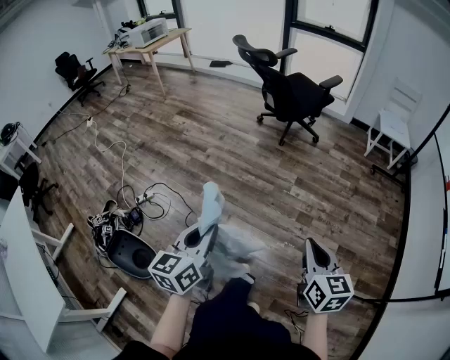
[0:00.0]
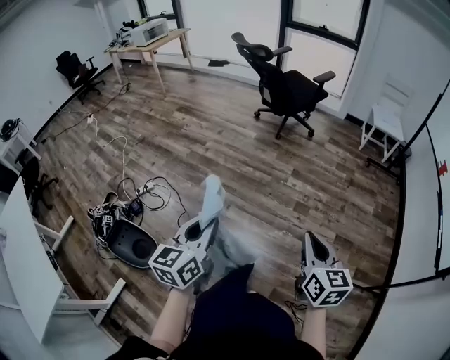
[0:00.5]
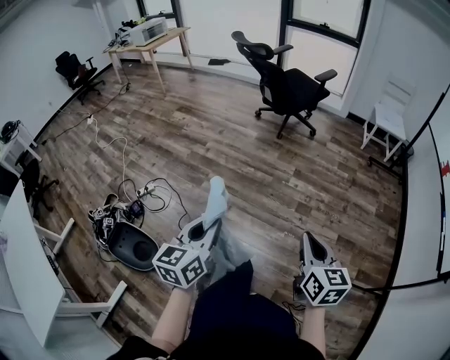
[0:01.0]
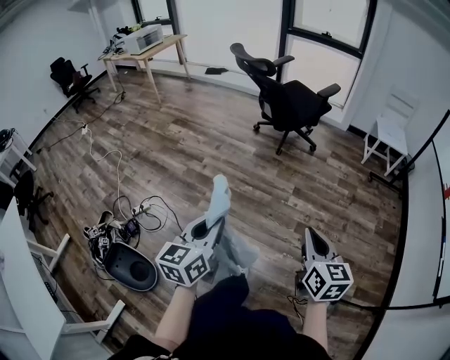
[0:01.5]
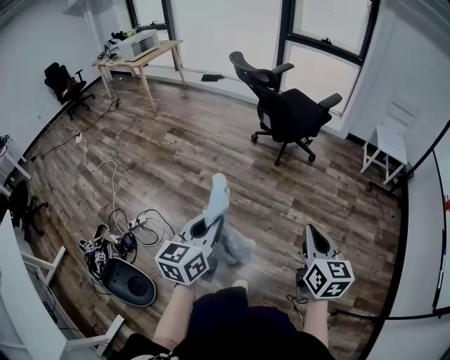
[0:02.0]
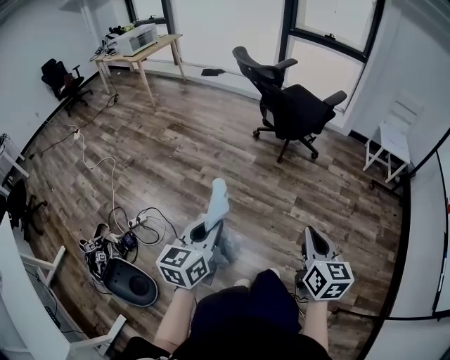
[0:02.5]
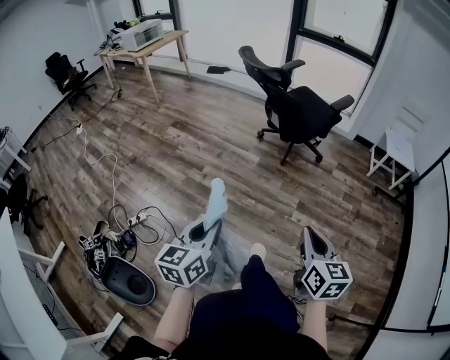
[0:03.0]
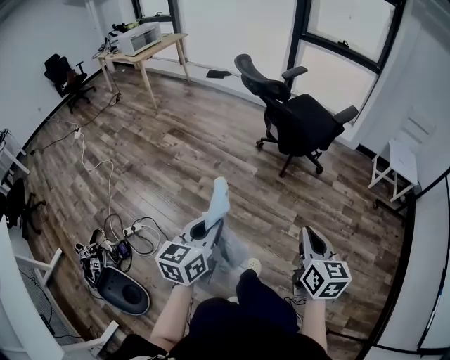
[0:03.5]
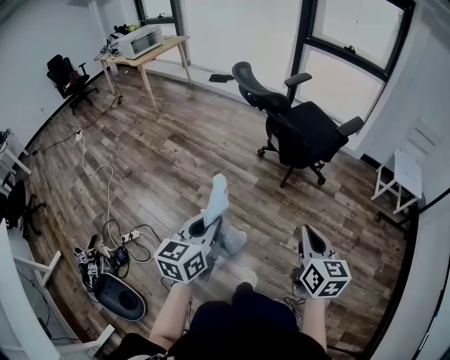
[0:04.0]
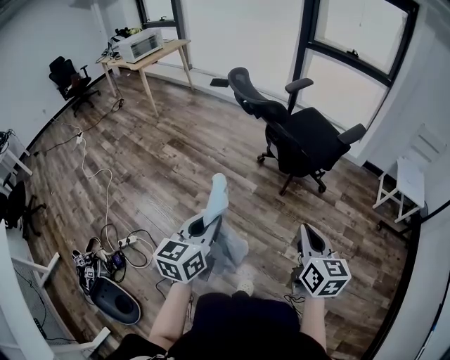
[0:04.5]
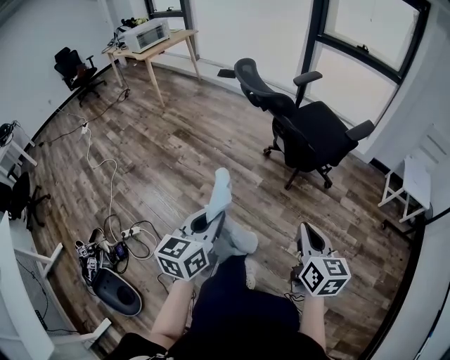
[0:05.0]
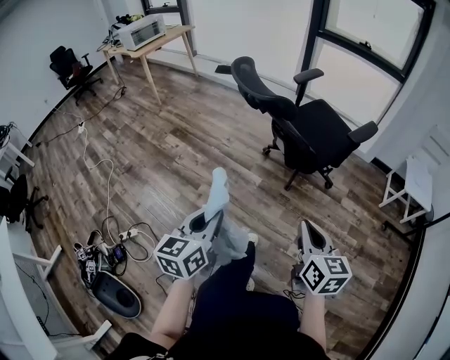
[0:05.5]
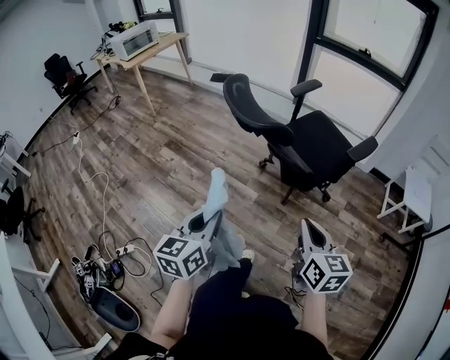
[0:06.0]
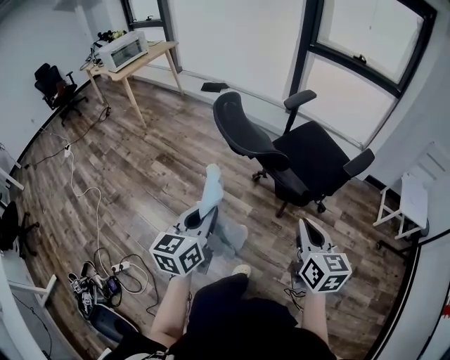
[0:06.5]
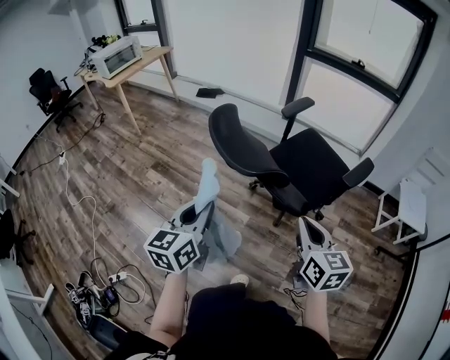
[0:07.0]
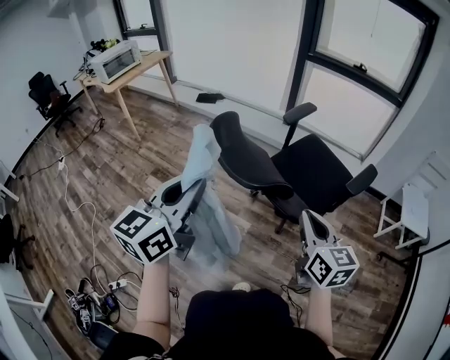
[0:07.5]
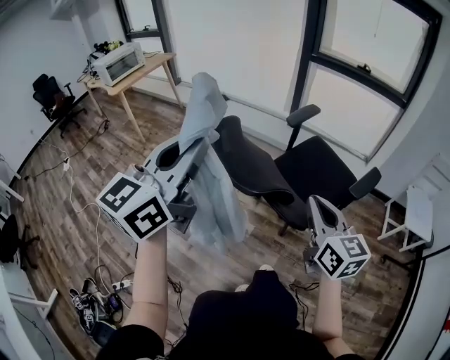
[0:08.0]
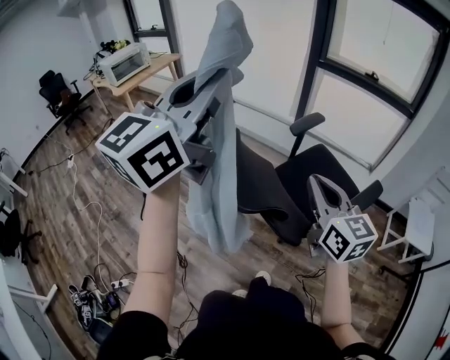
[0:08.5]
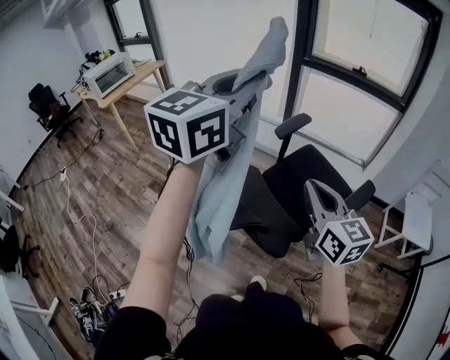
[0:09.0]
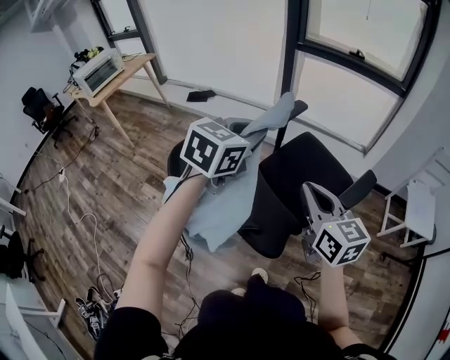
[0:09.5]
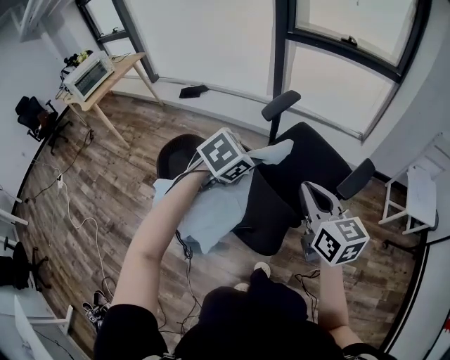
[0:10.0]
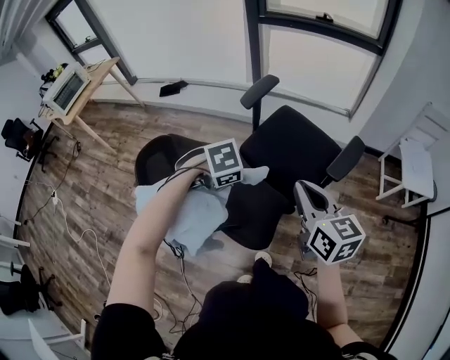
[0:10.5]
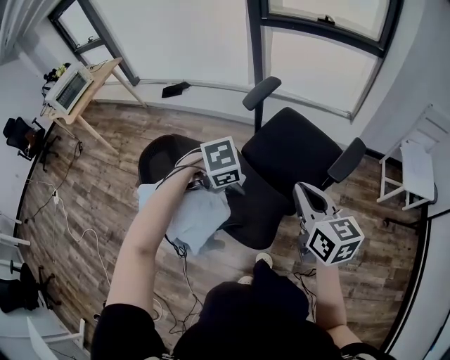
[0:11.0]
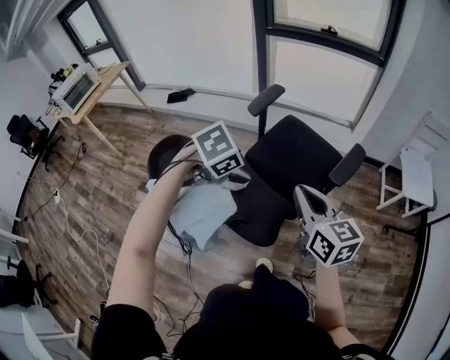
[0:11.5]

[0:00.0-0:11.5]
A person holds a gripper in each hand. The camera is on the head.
0:00.0 to 0:02.0: Both grippers travel together forward, about 20 cm.
0:02.0 to 0:04.0: The two grippers go approximately 30 cm forward.
0:04.0 to 0:06.0: The two grippers go some 25 cm forward.
0:06.0 to 0:07.5: The right gripper moves forward, about 20 cm, while the left gripper travels forward and upward by approximately 25 cm.
0:07.5 to 0:09.5: The left gripper is displaced forward and to the right by about 35 cm, and turns by approximately 30 degrees. Meanwhile the right gripper is displaced forward by some 20 cm.
0:09.5 to 0:11.5: The right gripper changes place by about 5 cm, while the left gripper shifts roughly 15 cm downward, tips its fingers downward by roughly 40 degrees, and opens.

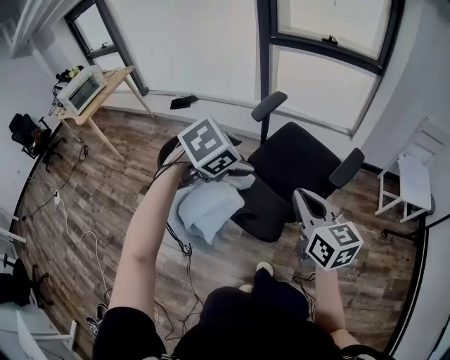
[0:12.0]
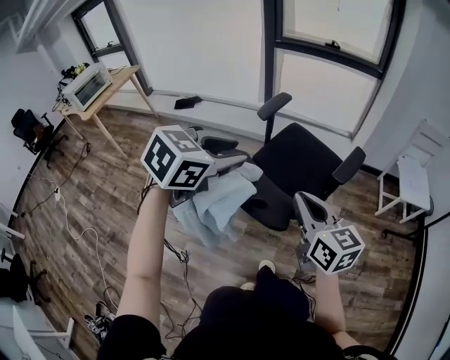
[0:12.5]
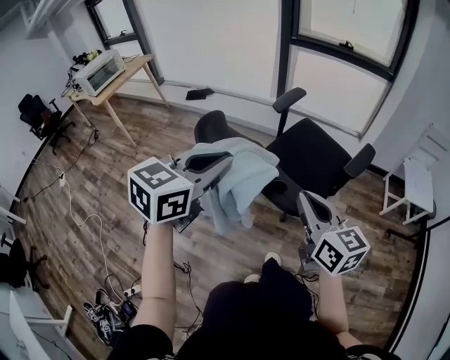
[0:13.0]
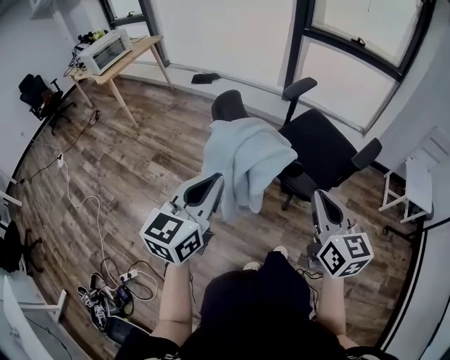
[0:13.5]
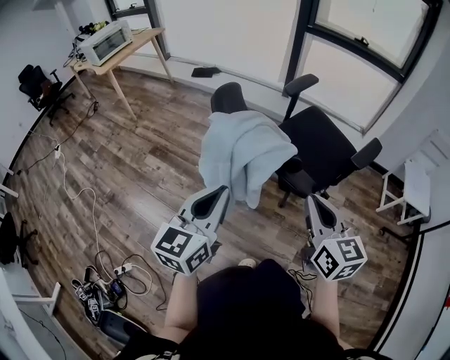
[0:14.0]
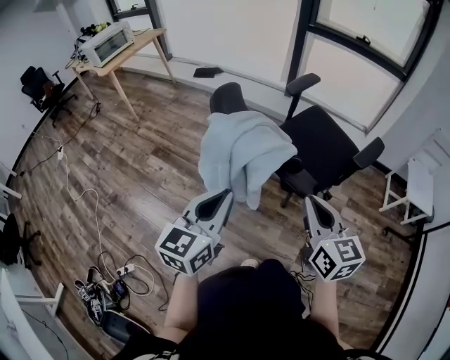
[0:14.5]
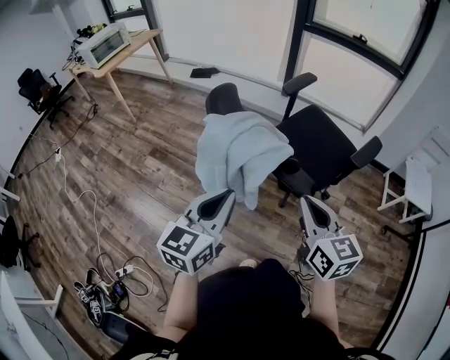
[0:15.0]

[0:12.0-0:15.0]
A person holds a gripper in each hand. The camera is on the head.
0:12.0 to 0:13.5: The left gripper goes about 30 cm backward and to the left, angles its fingers upward, by some 50 degrees, and closes up, while the right gripper travels backward and to the left by approximately 15 cm.
0:13.5 to 0:15.0: The left gripper moves downward, roughly 5 cm.

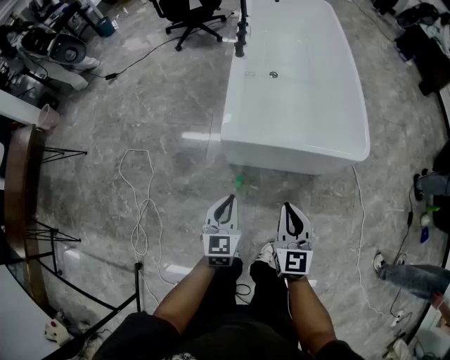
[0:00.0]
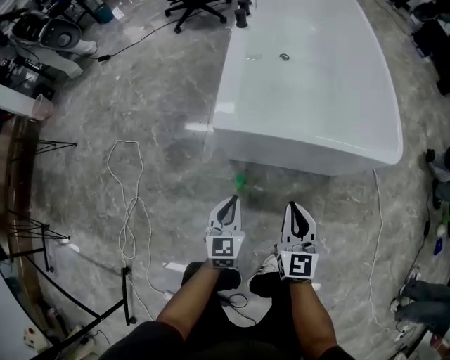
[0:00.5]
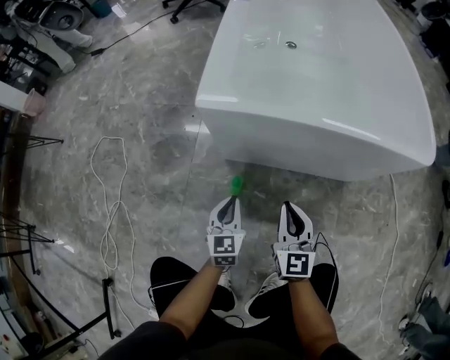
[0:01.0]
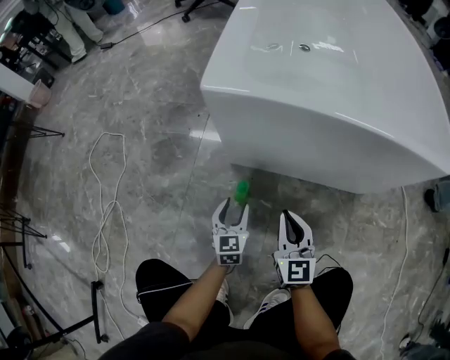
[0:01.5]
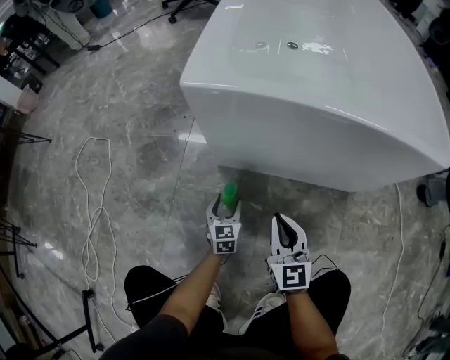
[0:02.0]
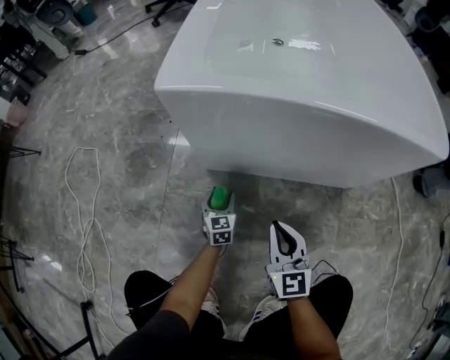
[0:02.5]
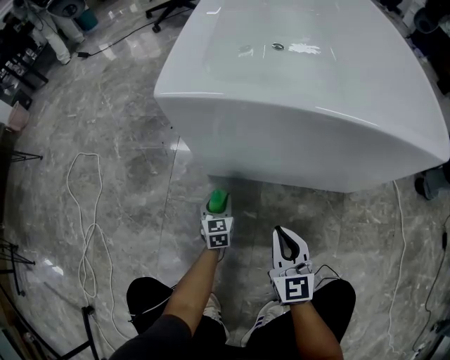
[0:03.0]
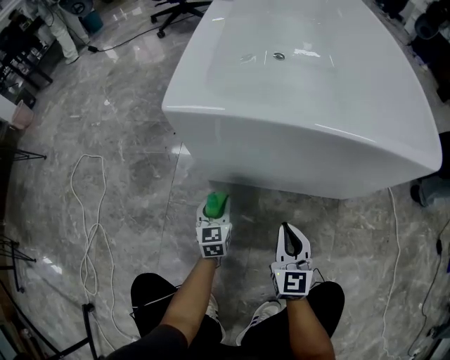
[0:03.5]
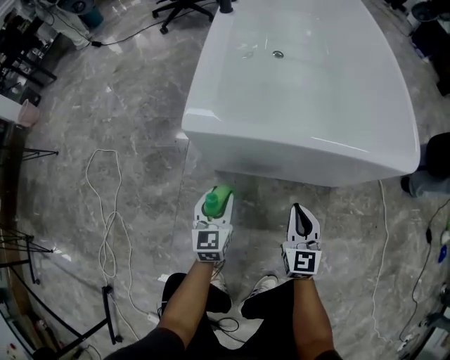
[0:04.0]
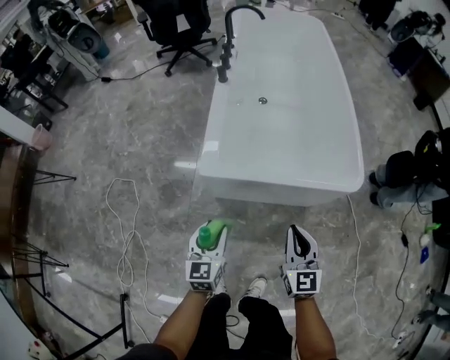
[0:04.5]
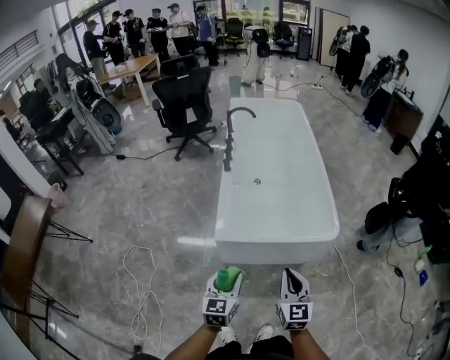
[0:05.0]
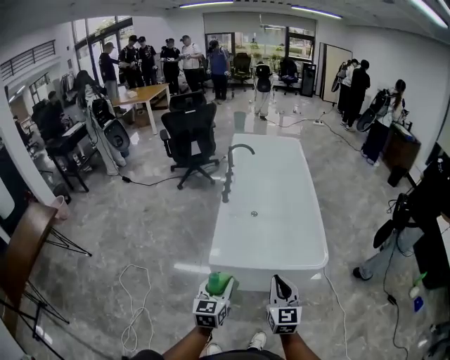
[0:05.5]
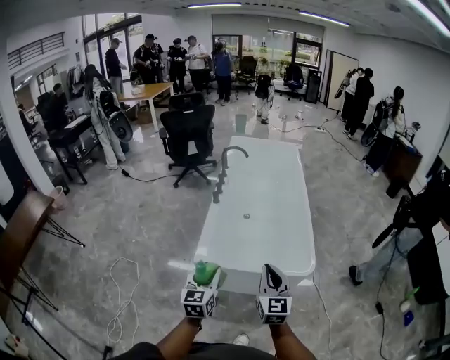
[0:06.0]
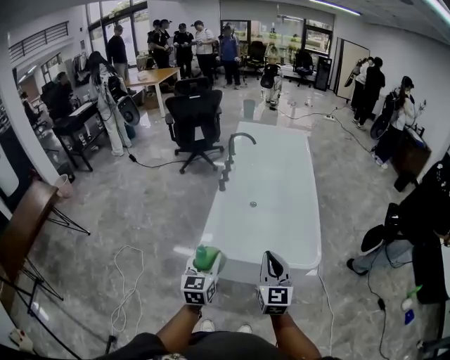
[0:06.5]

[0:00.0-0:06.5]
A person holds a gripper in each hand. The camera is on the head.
0:00.0 to 0:02.0: Both grippers move downward, roughly 60 cm. The left gripper opens.
0:02.0 to 0:04.5: Both grippers travel together upward, about 50 cm.
0:04.5 to 0:06.5: Both grippers travel together upward, roughly 30 cm.

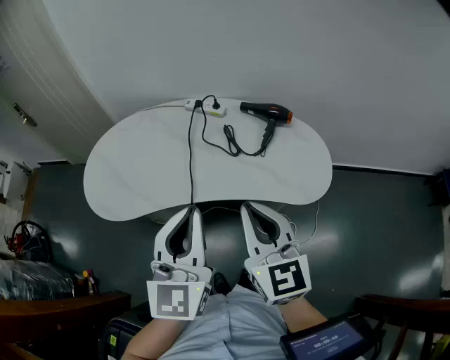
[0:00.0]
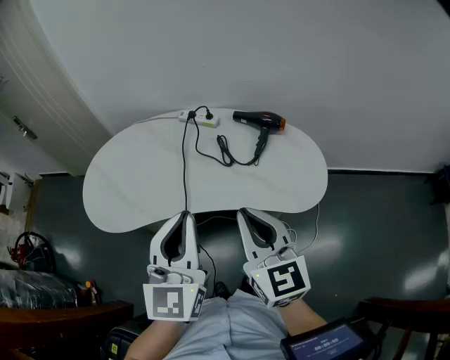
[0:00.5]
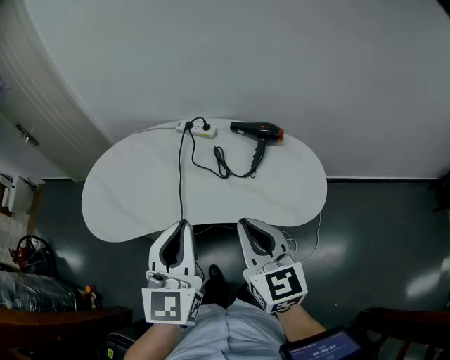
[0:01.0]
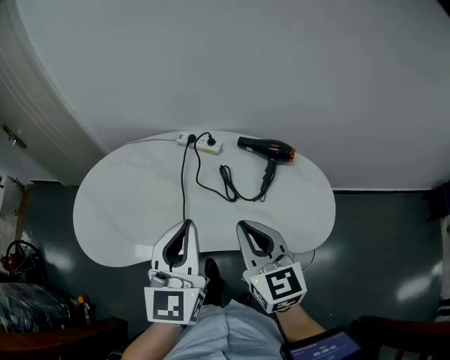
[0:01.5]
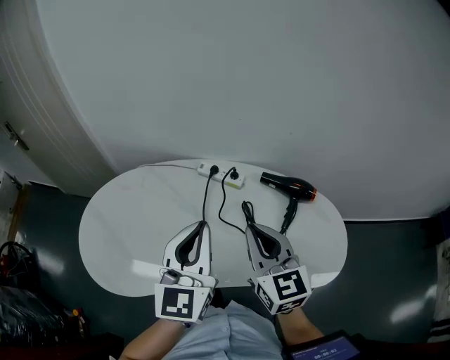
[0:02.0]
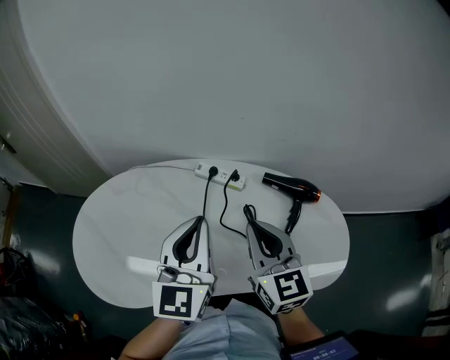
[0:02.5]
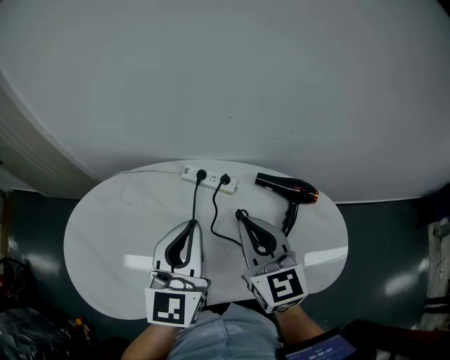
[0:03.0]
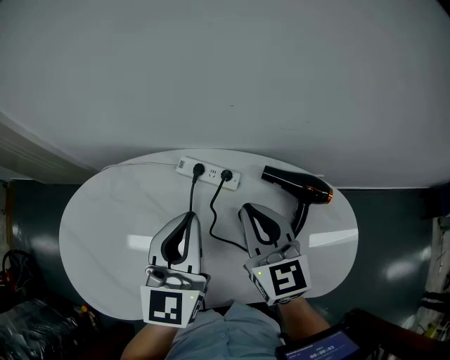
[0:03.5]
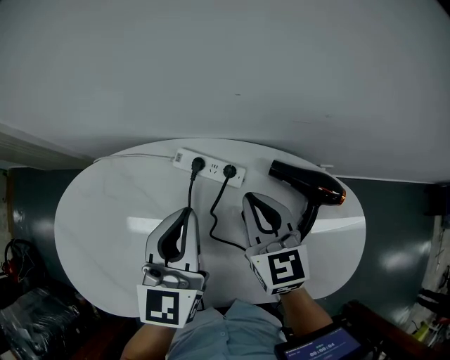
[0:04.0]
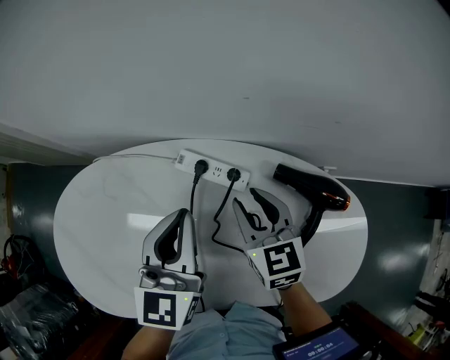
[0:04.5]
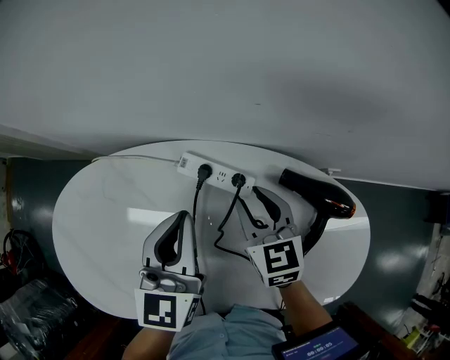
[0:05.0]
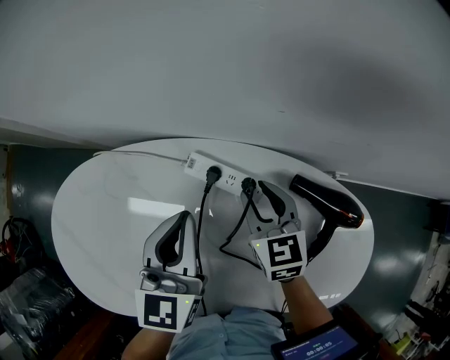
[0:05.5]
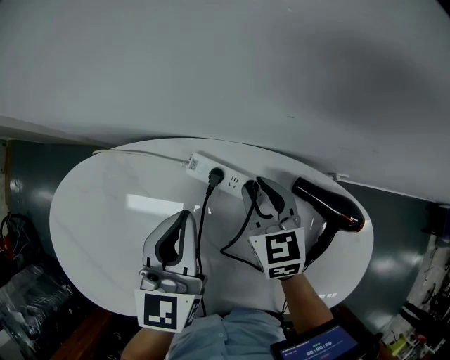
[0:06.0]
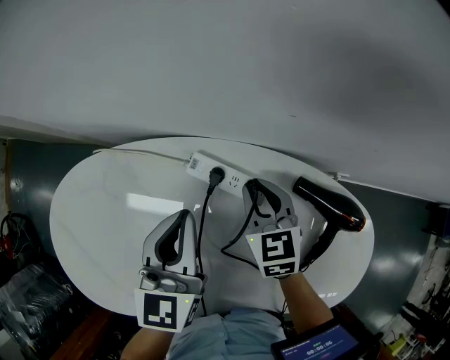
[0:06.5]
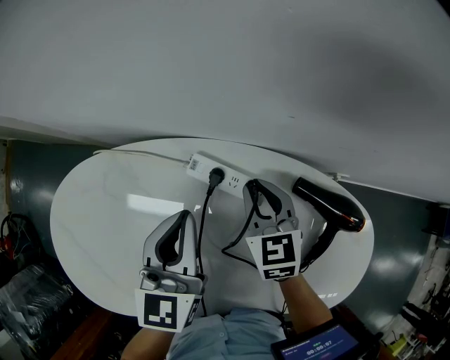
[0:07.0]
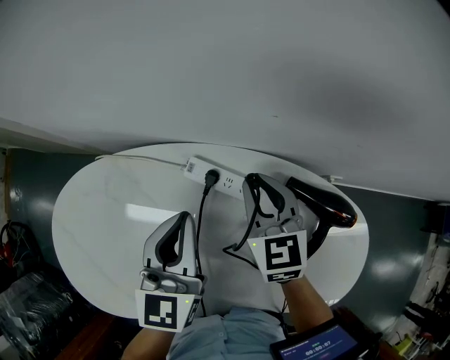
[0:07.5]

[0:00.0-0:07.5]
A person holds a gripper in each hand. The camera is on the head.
0:00.0 to 0:02.0: The grippers both shift forward by roughly 25 cm.
0:02.0 to 0:04.0: Both grippers move forward and downward, roughly 20 cm.
0:04.0 to 0:05.5: The right gripper travels downward and forward by roughly 10 cm, and opens its fingers. Meanwhile the left gripper changes place by approximately 5 cm.
0:05.5 to 0:07.5: The right gripper moves upward, roughly 5 cm.
